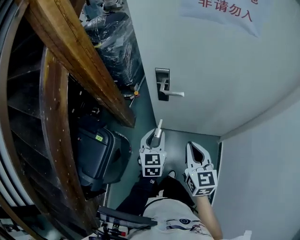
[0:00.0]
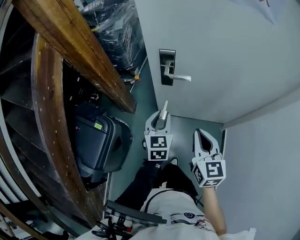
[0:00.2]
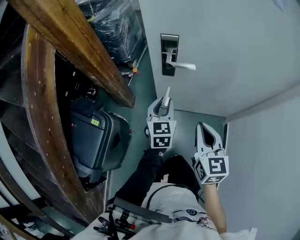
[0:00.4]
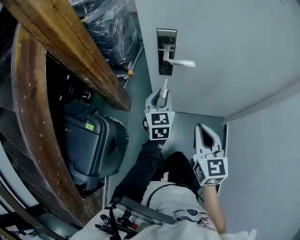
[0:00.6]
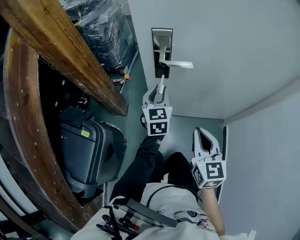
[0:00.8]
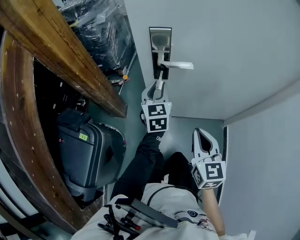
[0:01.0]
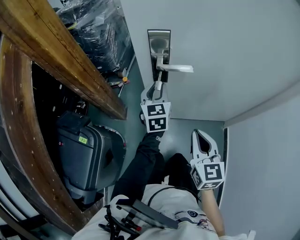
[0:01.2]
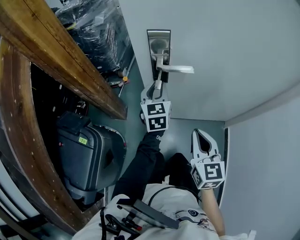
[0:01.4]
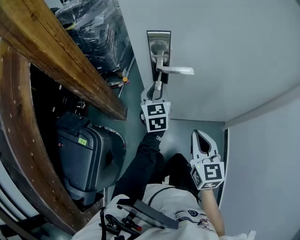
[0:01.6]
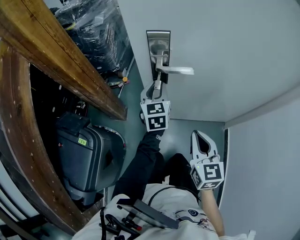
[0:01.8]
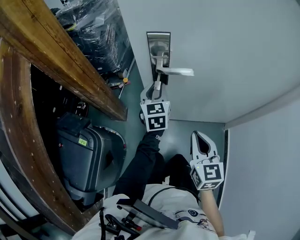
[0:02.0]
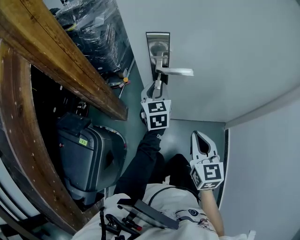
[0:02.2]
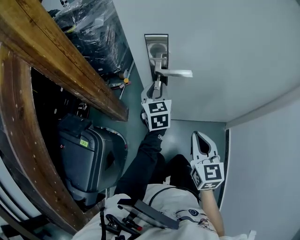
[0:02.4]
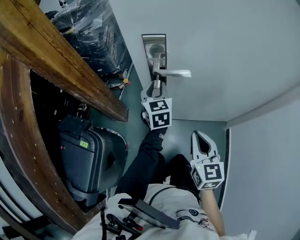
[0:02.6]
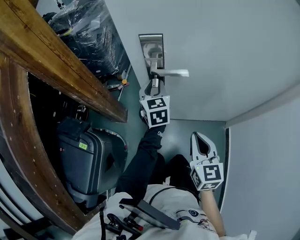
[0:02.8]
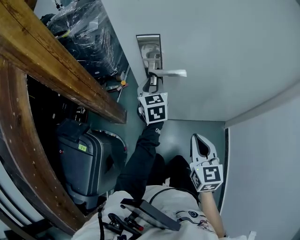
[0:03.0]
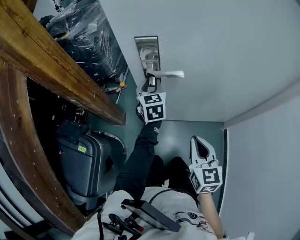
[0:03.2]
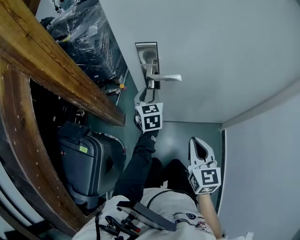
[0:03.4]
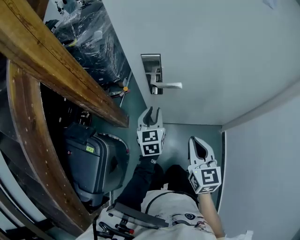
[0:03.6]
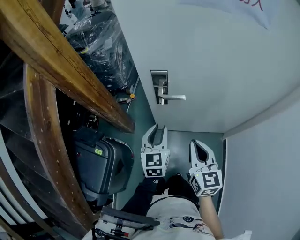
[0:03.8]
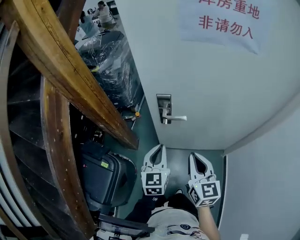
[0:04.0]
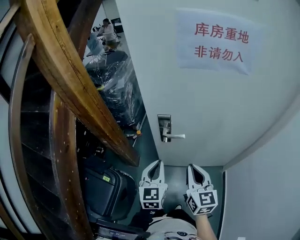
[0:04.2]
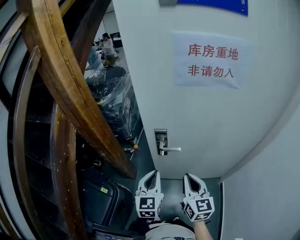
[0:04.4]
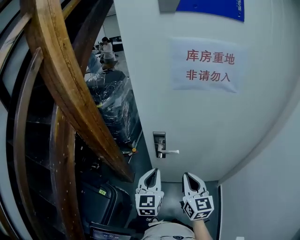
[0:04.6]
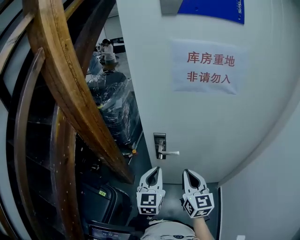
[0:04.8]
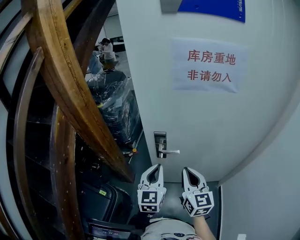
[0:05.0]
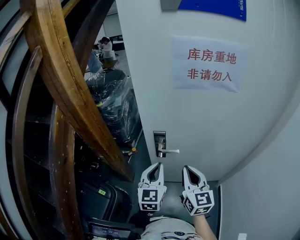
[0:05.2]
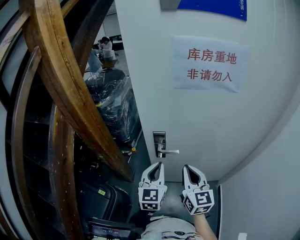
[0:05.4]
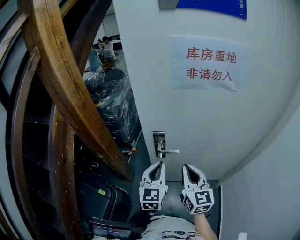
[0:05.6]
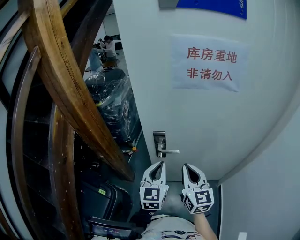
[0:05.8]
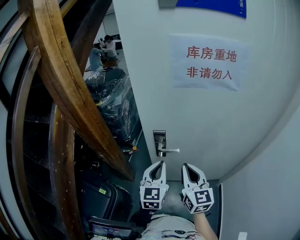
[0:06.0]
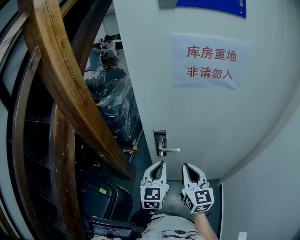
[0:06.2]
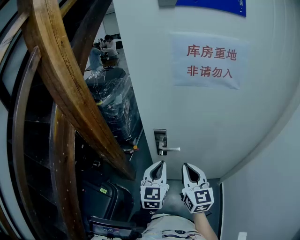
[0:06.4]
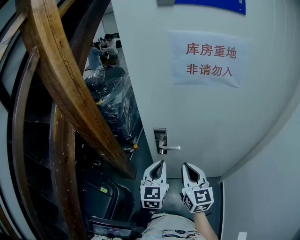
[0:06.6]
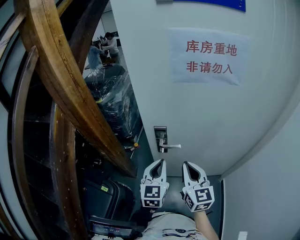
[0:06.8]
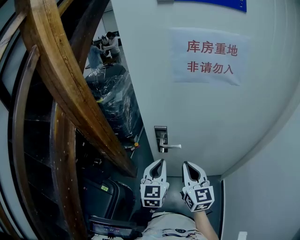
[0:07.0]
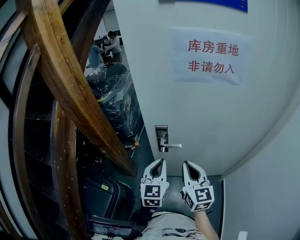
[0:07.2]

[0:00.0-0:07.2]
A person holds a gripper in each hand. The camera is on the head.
0:00.0 to 0:01.4: The left gripper moves forward and downward, some 25 cm. Meanwhile the right gripper is displaced downward and forward by some 20 cm.
0:01.4 to 0:02.8: The grippers make only small movements.
0:02.8 to 0:04.4: The left gripper travels upward and backward by some 30 cm, and closes; the right gripper is displaced upward by some 25 cm.
0:04.4 to 0:05.8: The right gripper shifts by some 5 cm, while the left gripper changes place by roughly 5 cm.
0:05.8 to 0:07.2: The grippers stay close to where they were, moving slightly.

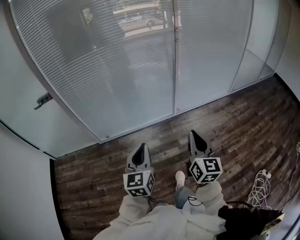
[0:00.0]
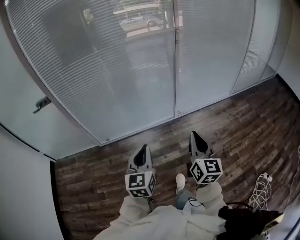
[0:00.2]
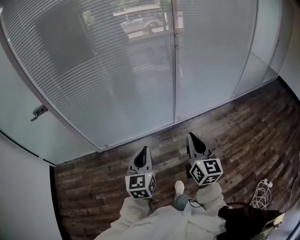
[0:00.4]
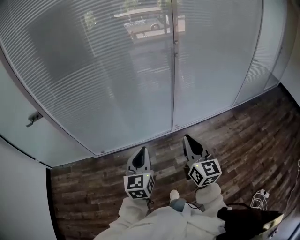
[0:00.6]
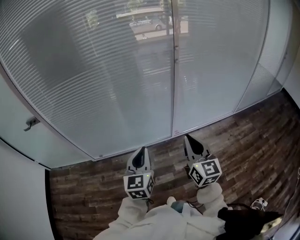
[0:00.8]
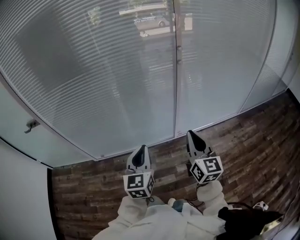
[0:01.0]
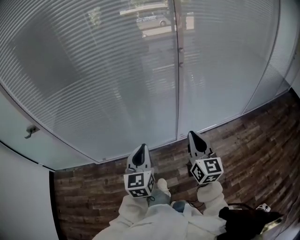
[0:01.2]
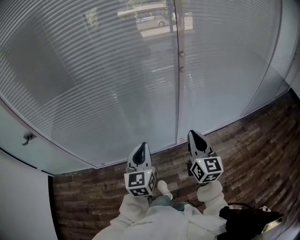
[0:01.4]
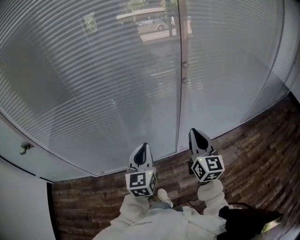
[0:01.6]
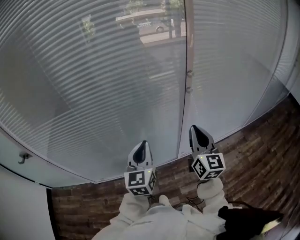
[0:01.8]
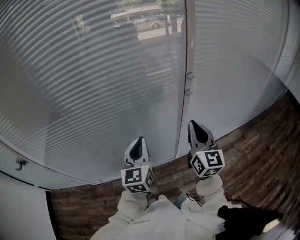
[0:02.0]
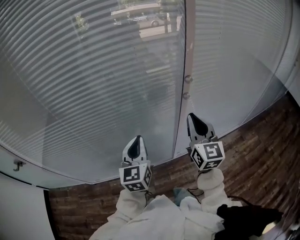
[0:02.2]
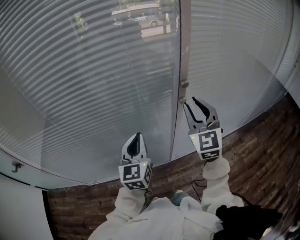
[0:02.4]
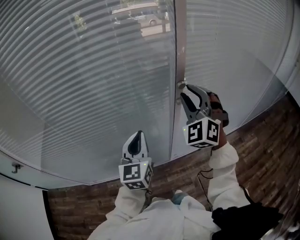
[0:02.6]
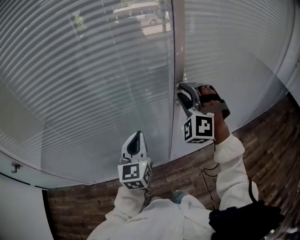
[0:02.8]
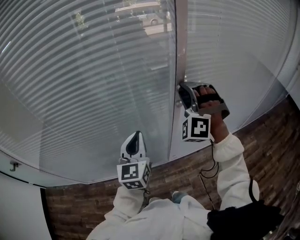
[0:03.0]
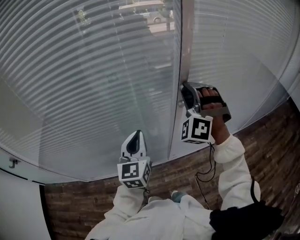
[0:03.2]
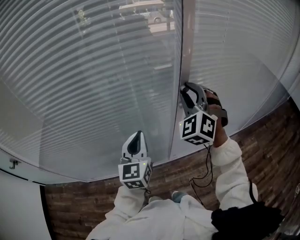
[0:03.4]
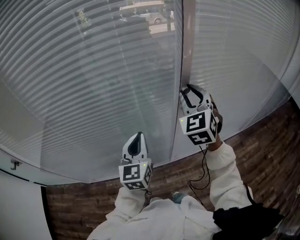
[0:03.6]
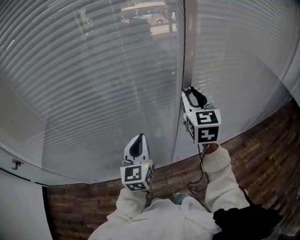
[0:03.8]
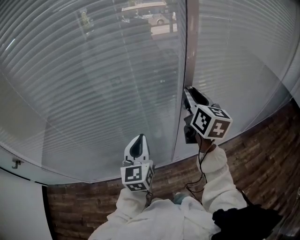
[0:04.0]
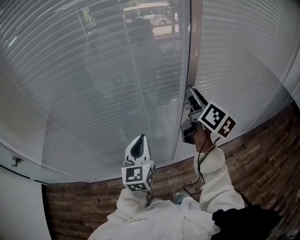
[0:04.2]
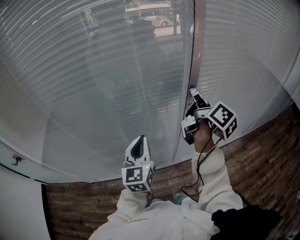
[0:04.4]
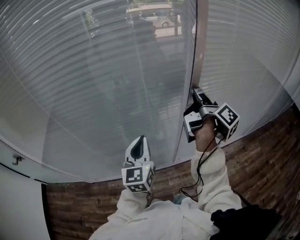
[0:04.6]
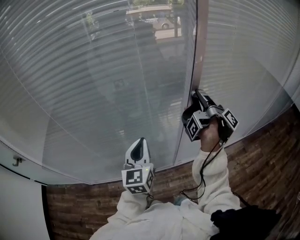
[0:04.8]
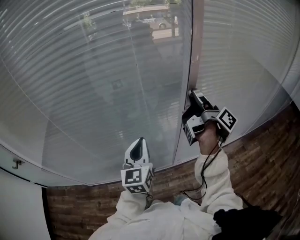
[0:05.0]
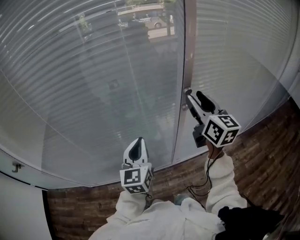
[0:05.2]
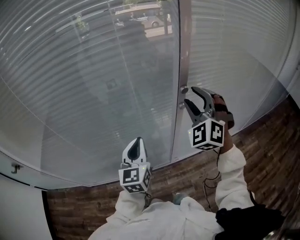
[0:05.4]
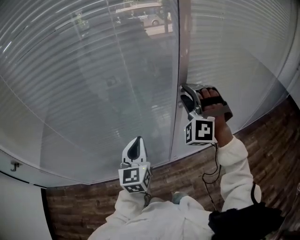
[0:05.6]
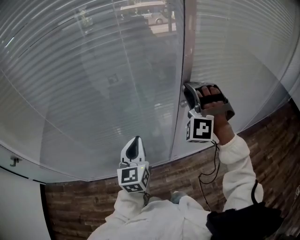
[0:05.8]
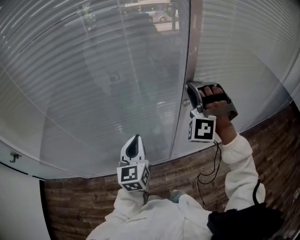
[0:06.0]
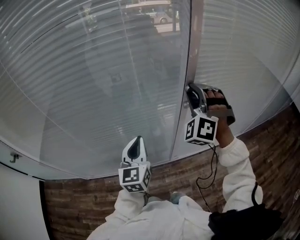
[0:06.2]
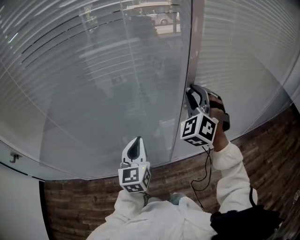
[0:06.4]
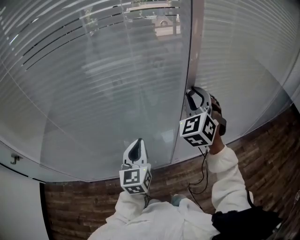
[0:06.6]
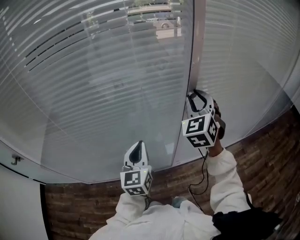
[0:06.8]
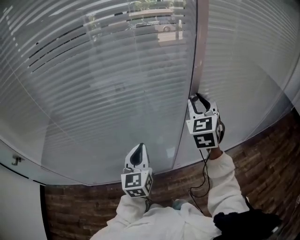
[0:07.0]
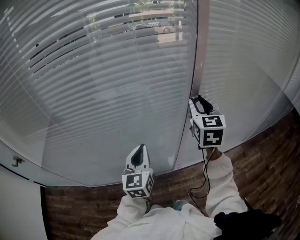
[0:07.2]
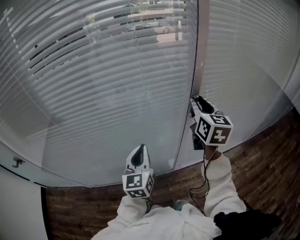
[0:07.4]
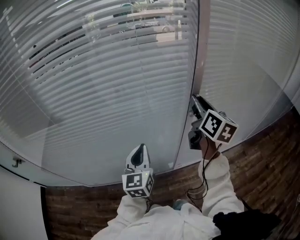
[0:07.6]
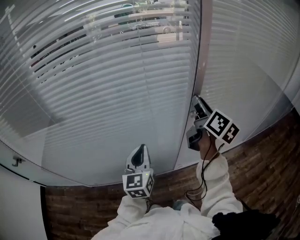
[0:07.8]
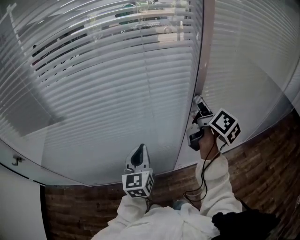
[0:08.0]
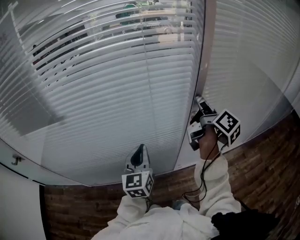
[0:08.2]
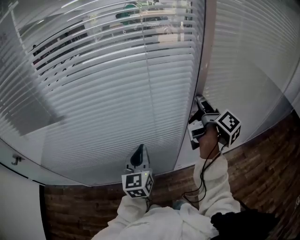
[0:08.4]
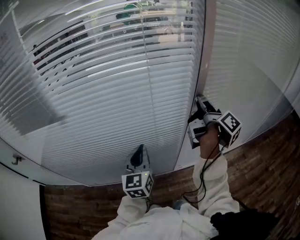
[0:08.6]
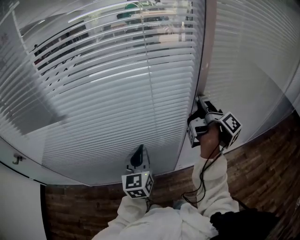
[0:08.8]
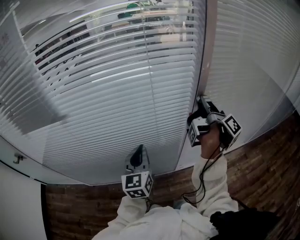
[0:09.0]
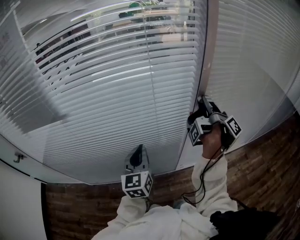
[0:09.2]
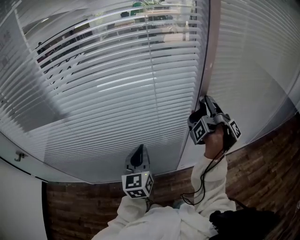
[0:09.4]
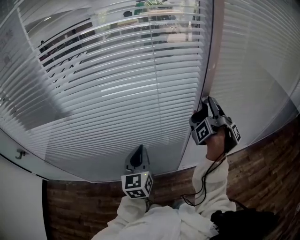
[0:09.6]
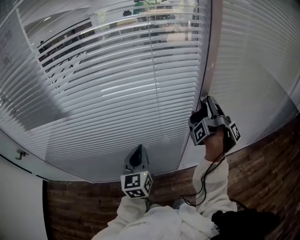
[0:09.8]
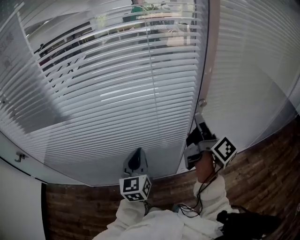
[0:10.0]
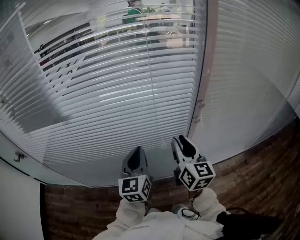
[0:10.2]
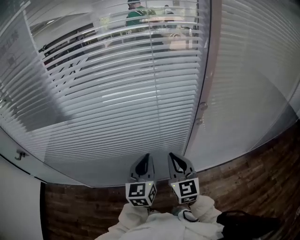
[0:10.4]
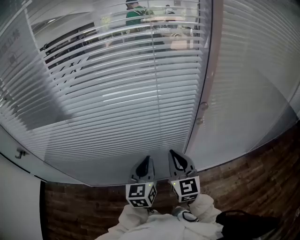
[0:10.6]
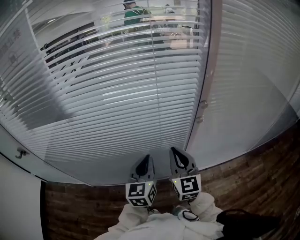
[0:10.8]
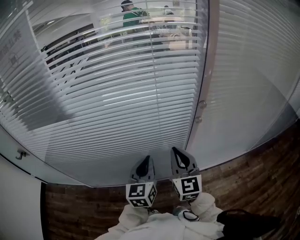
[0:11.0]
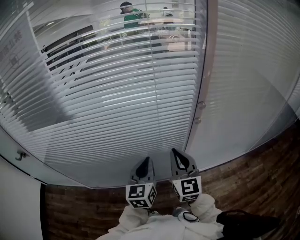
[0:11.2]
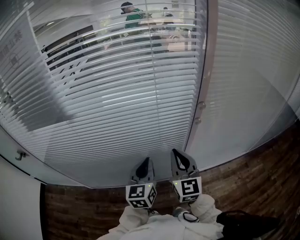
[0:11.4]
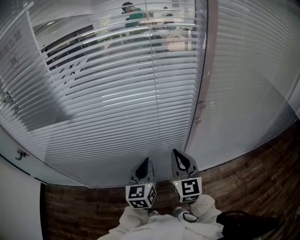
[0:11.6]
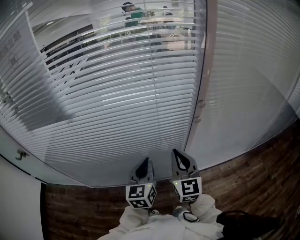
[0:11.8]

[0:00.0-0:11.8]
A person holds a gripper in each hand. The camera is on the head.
0:00.0 to 0:01.4: Both grippers are carried forward, some 50 cm.
0:01.4 to 0:03.0: The grippers both shift forward by approximately 30 cm. The right gripper rolls counterclockwise, seen from behind, by approximately 100 degrees, and opens its fingers.
0:03.0 to 0:04.4: The right gripper rolls clockwise, seen from behind, by some 150 degrees.
0:04.4 to 0:06.0: The right gripper rolls counterclockwise, seen from behind, by some 160 degrees.
0:06.0 to 0:07.4: The right gripper twists roughly 100 degrees clockwise, seen from behind.
0:07.4 to 0:08.8: The right gripper rotates around the line of its fingers by some 80 degrees, clockwise from behind.
0:08.8 to 0:10.4: The right gripper moves to the left, backward and downward, roughly 25 cm, twists approximately 90 degrees counterclockwise, seen from behind, and closes.
0:10.4 to 0:11.8: The grippers move only a little.

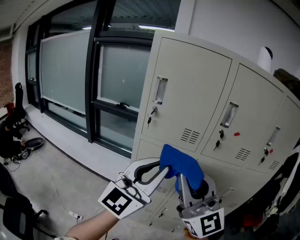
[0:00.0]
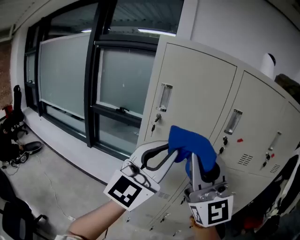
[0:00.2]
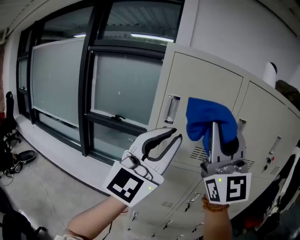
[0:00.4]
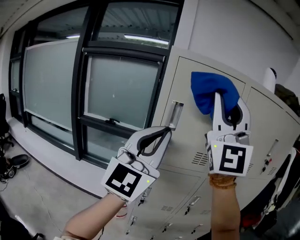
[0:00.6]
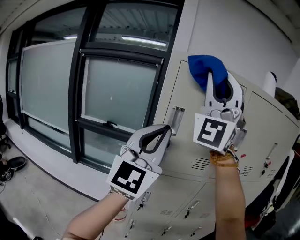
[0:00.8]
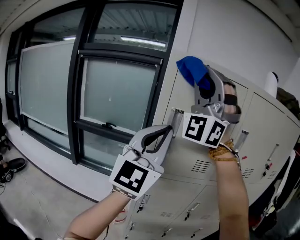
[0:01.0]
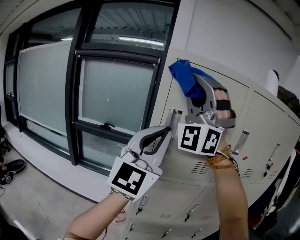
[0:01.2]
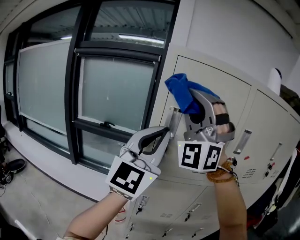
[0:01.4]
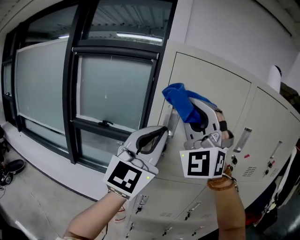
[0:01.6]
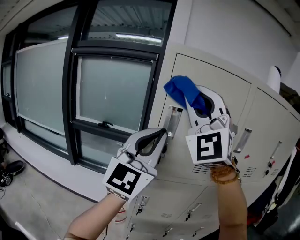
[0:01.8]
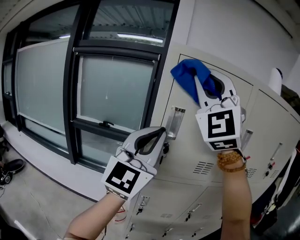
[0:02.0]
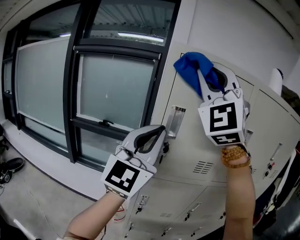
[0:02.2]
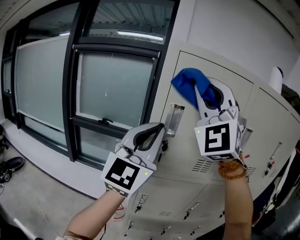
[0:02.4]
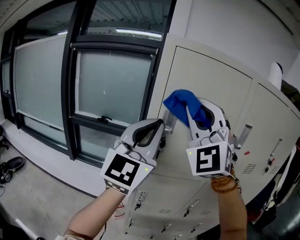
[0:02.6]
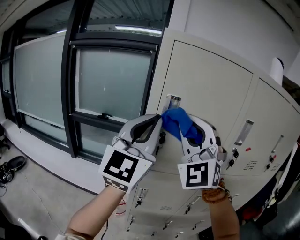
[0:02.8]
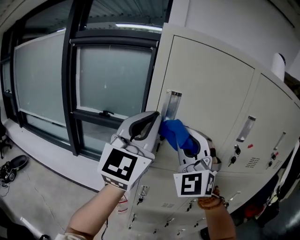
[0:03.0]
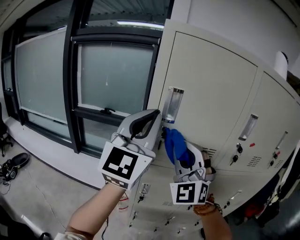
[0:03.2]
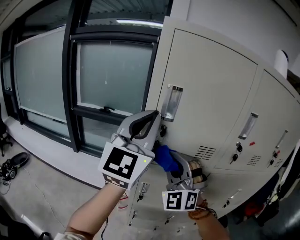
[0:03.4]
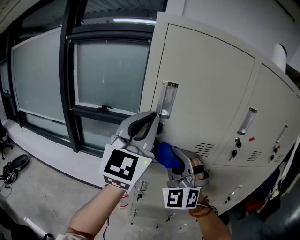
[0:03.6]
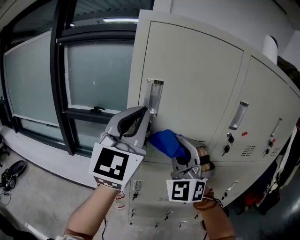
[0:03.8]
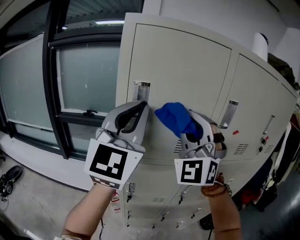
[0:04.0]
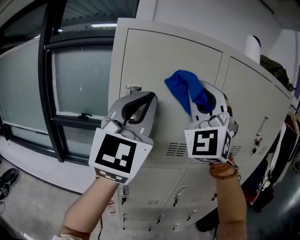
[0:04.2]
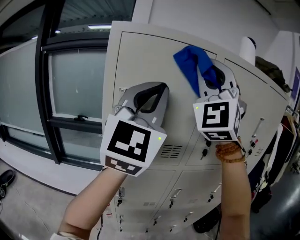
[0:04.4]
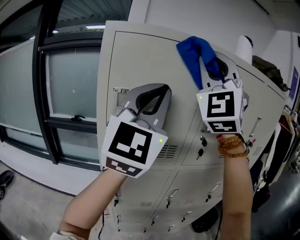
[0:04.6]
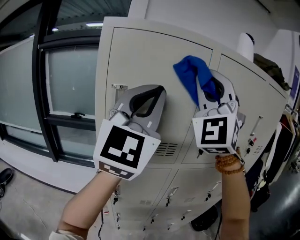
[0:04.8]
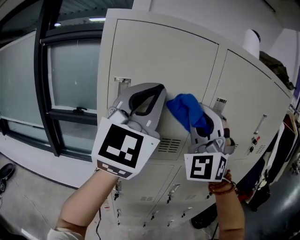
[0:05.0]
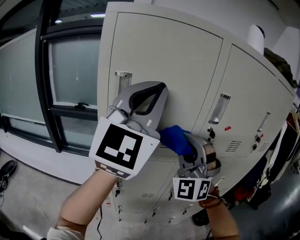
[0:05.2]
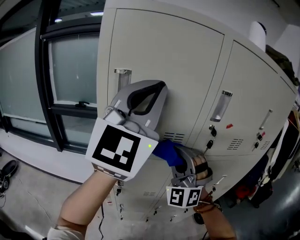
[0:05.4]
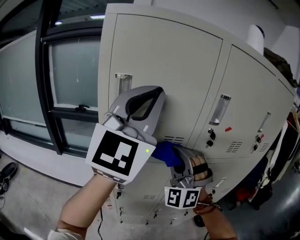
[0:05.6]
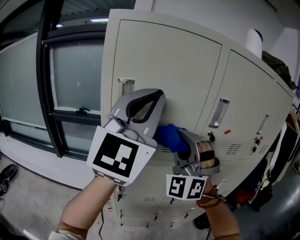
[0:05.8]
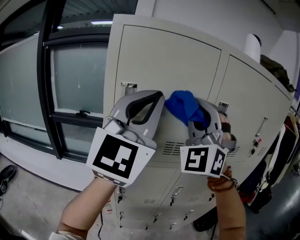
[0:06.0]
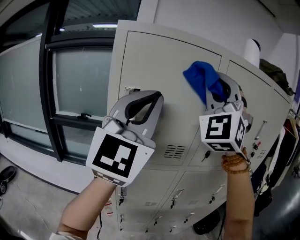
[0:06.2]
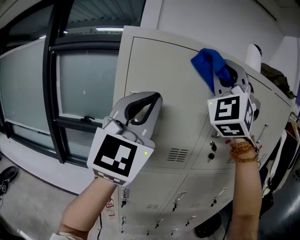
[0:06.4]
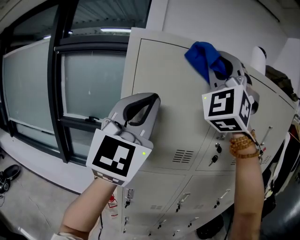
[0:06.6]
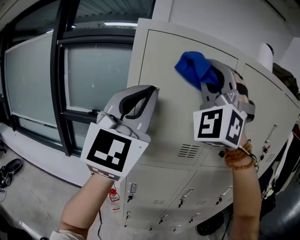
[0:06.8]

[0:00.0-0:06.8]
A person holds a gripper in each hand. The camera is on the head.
0:00.0 to 0:01.4: The left gripper shifts by roughly 20 cm.
0:04.0 to 0:05.4: The left gripper moves roughly 10 cm.
0:05.4 to 0:06.8: The left gripper shifts by about 10 cm.
